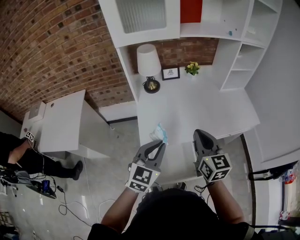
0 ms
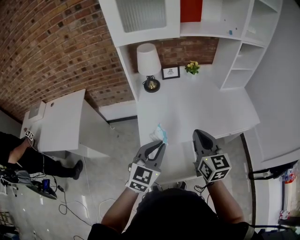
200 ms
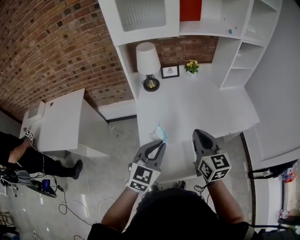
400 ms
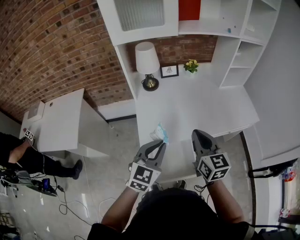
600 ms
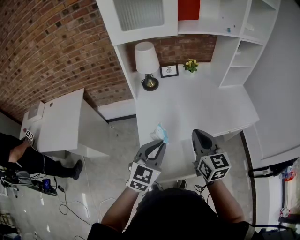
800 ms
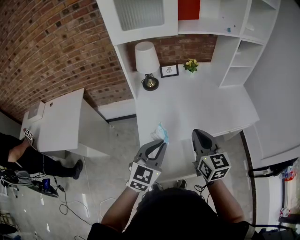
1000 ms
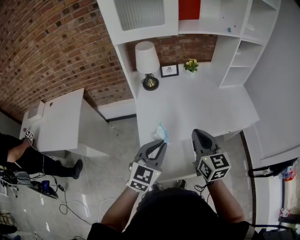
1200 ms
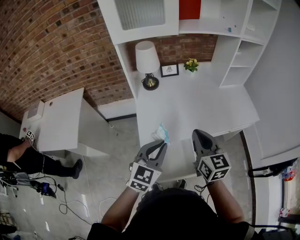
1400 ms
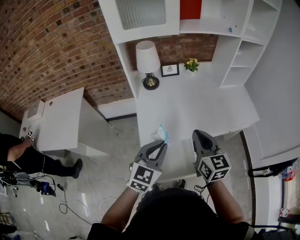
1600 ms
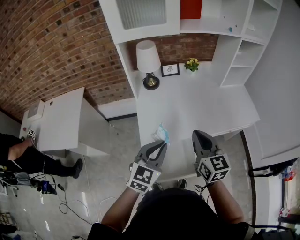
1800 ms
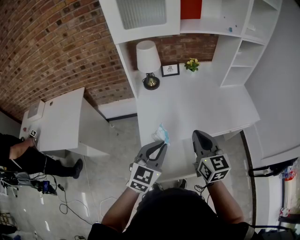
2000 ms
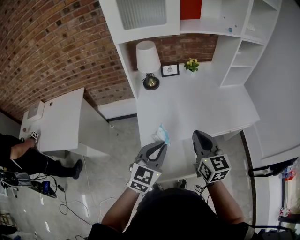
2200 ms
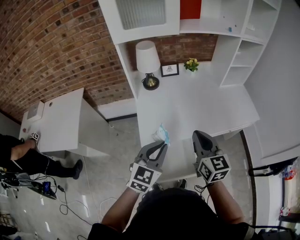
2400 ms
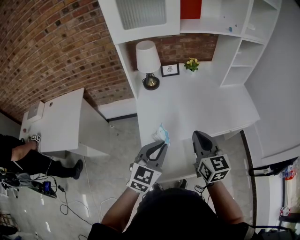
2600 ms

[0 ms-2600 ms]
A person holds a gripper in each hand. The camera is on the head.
0 ms to 1200 ms: The two grippers keep their place.
1200 ms to 2600 ms: The two grippers keep their place.

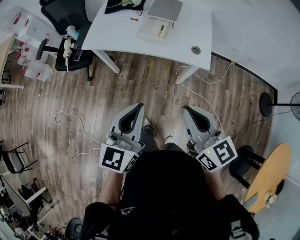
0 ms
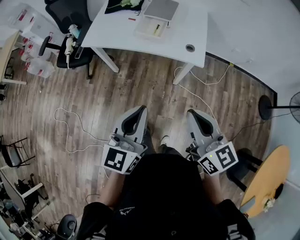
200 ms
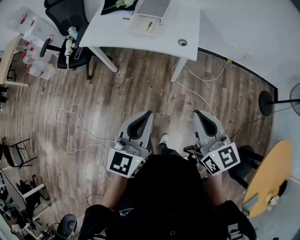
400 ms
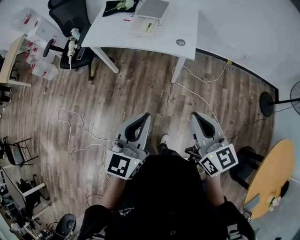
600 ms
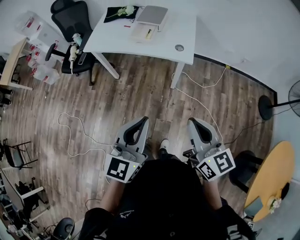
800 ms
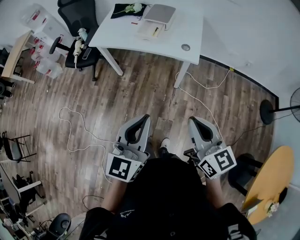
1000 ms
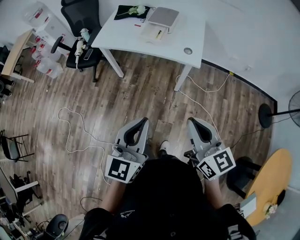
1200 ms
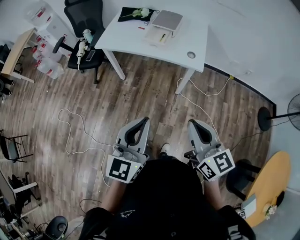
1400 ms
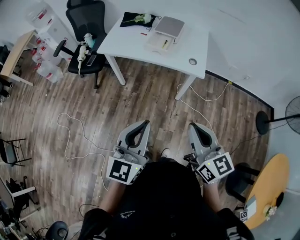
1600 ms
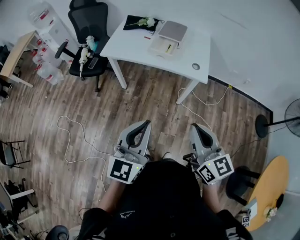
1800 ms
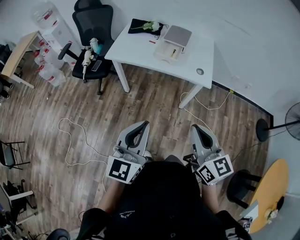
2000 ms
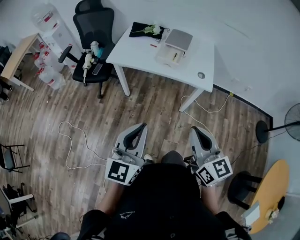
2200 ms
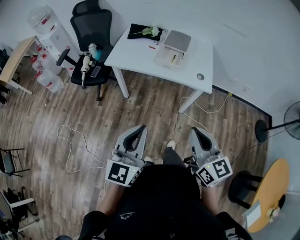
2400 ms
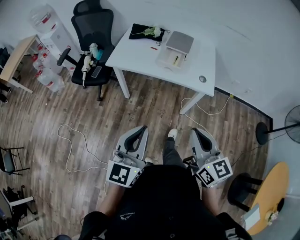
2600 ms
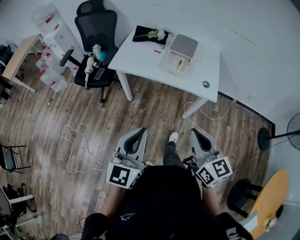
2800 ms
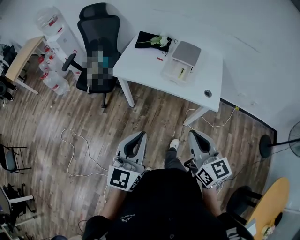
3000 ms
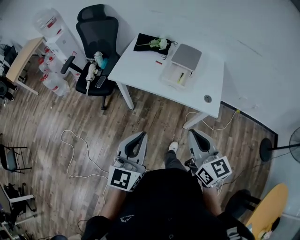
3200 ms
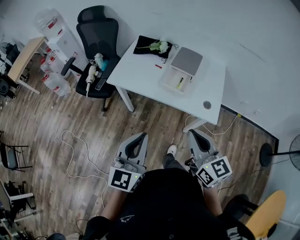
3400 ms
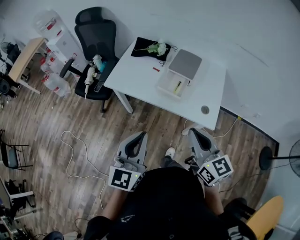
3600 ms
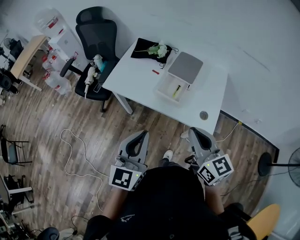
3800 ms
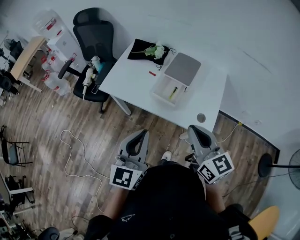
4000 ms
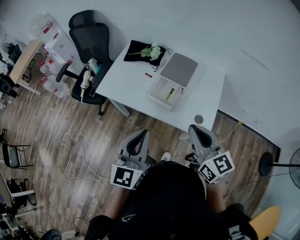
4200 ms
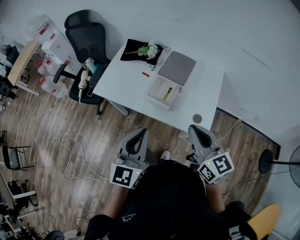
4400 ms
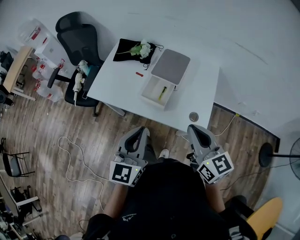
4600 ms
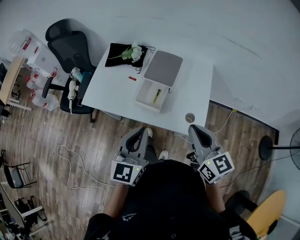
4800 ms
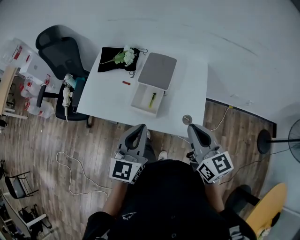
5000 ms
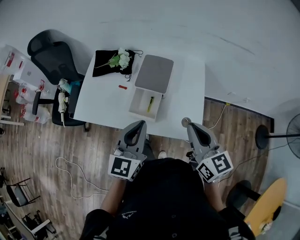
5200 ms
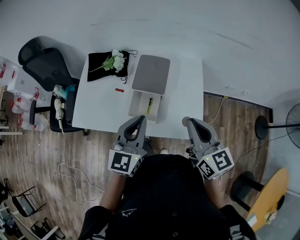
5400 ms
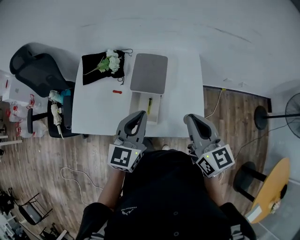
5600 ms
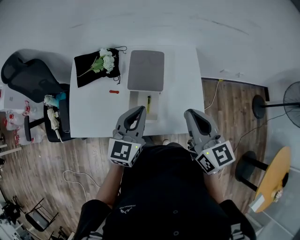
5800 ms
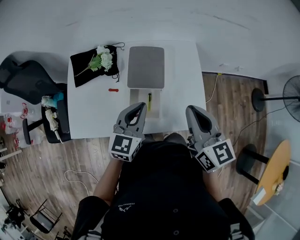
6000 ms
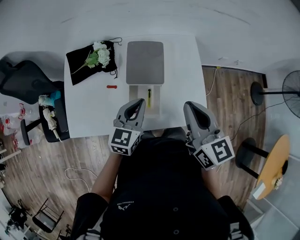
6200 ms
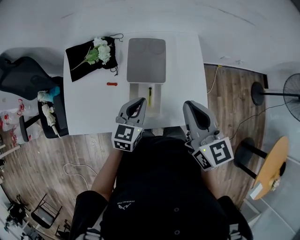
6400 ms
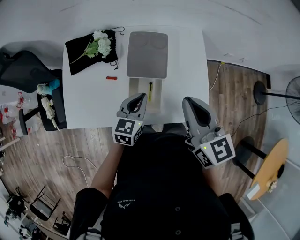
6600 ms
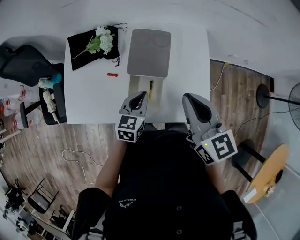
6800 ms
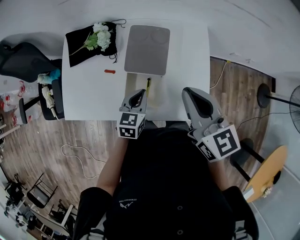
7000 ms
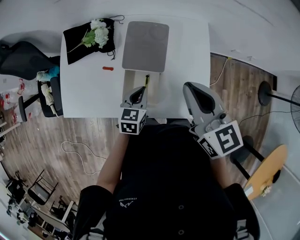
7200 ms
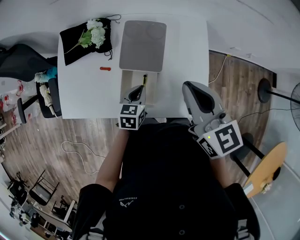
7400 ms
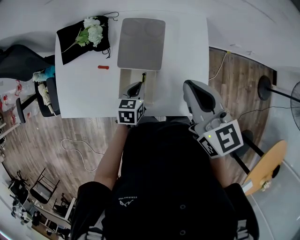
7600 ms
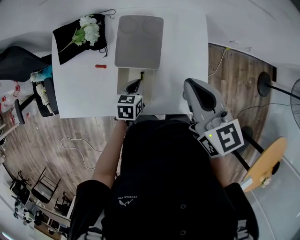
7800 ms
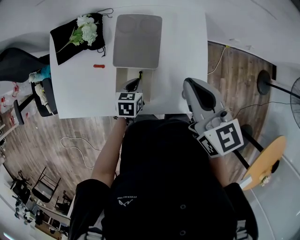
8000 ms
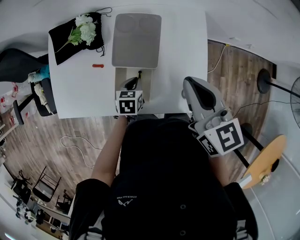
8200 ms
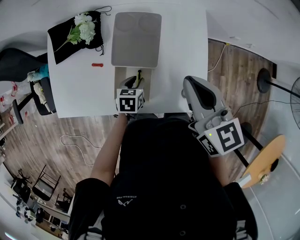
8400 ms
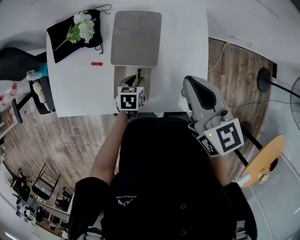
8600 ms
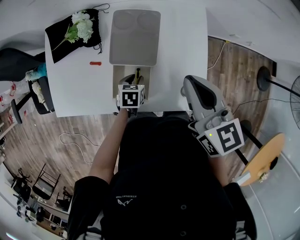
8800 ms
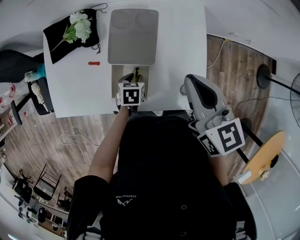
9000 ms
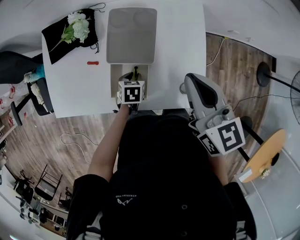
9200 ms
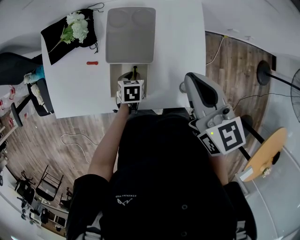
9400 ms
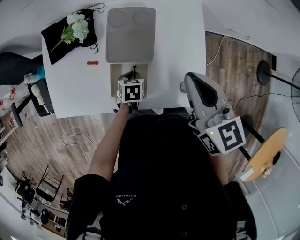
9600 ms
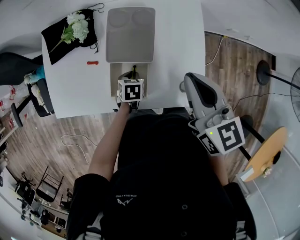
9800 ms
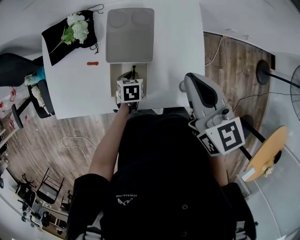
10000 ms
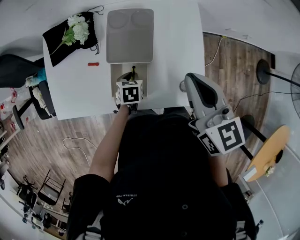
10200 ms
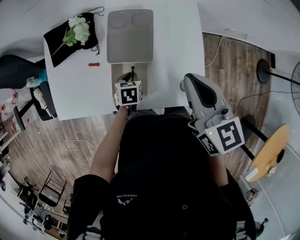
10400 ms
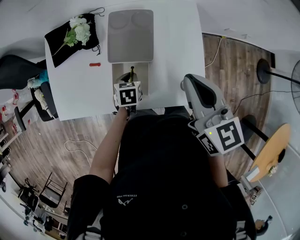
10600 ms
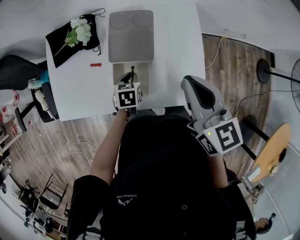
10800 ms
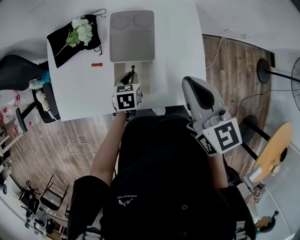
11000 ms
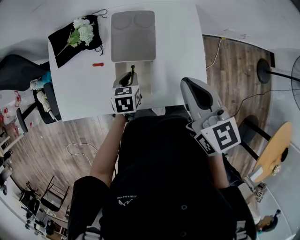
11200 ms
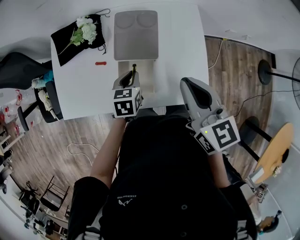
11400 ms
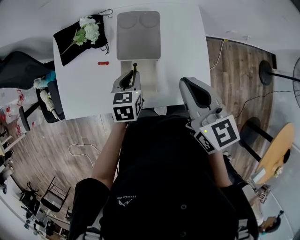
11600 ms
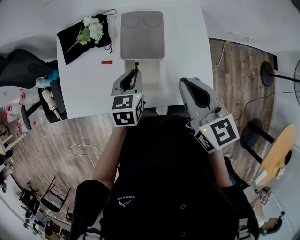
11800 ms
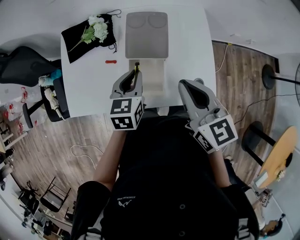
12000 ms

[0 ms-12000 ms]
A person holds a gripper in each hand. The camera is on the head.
0 ms to 1600 ms: Both grippers travel together backward, about 15 cm.
1600 ms to 3000 ms: Both grippers travel together forward and to the left, some 20 cm.
3000 ms to 4400 ms: Both grippers travel together forward and to the right, some 30 cm.
4400 ms to 6000 ms: The right gripper ends up roughly 20 cm from where it was, and turns by approximately 30 degrees; the left gripper changes place by about 30 cm, and turns by approximately 30 degrees.
6000 ms to 7600 ms: The right gripper travels forward by approximately 10 cm. Meanwhile the left gripper travels downward by roughly 20 cm, and rotates about 30 degrees.
7600 ms to 9000 ms: The left gripper is displaced downward by some 10 cm, and opens its fingers.
9000 ms to 10400 ms: The grippers make only small movements.
10400 ms to 12000 ms: The right gripper moves to the left and backward, roughly 10 cm. Meanwhile the left gripper goes about 20 cm upward, and rotates about 30 degrees.

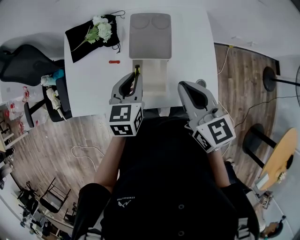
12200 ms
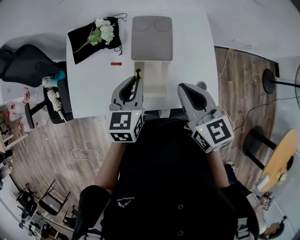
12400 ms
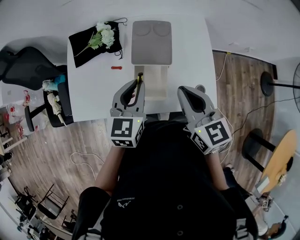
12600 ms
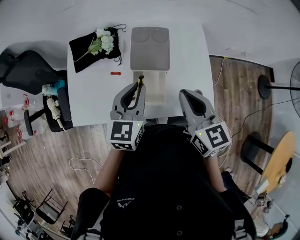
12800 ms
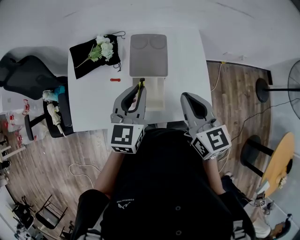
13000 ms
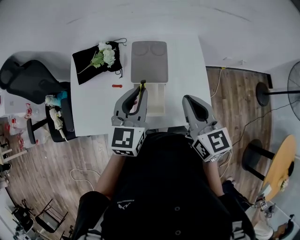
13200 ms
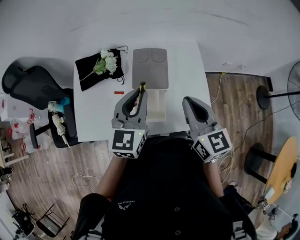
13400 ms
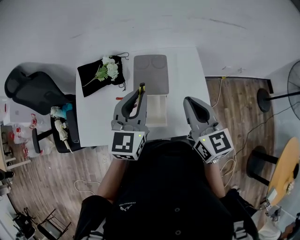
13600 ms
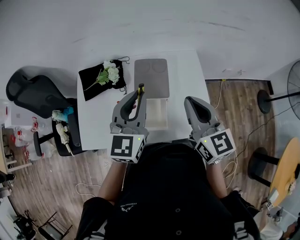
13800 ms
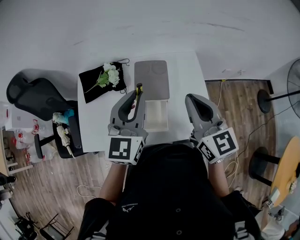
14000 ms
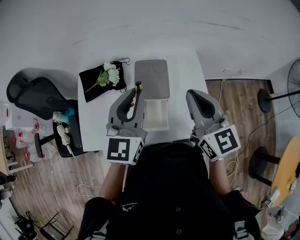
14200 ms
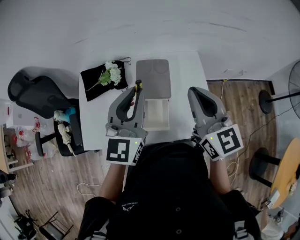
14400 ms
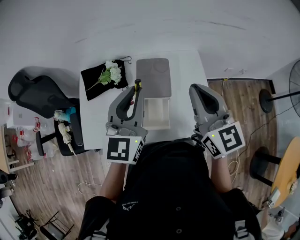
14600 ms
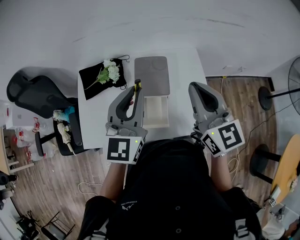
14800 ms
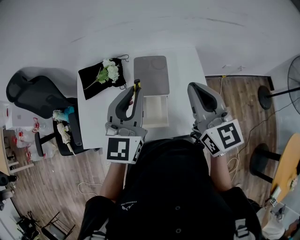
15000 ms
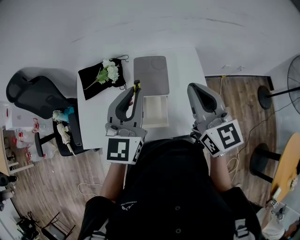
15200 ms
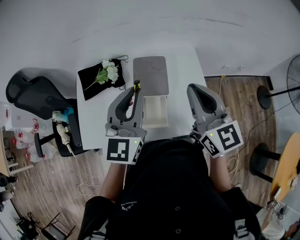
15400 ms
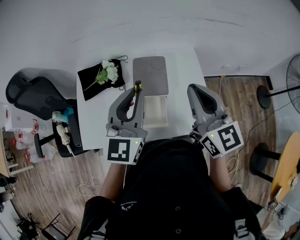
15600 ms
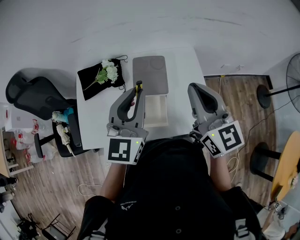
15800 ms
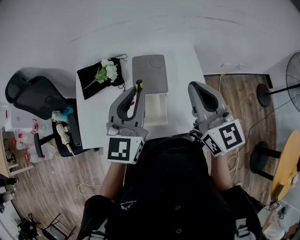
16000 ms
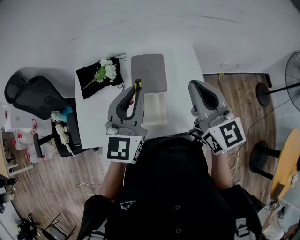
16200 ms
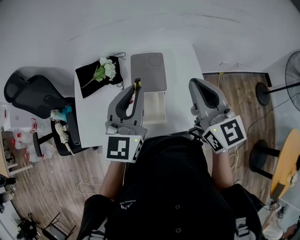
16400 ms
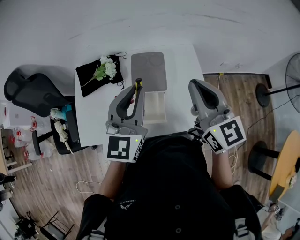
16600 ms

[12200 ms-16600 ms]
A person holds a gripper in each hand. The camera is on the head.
12200 ms to 13600 ms: The left gripper travels upward by approximately 15 cm, and changes its angle by about 30 degrees. The right gripper shifts roughly 5 cm upward.
13600 ms to 15200 ms: Both grippers travel together upward, roughly 5 cm.
15200 ms to 16600 ms: The grippers stay close to where they were, moving slightly.

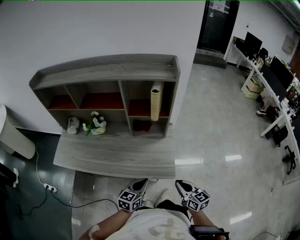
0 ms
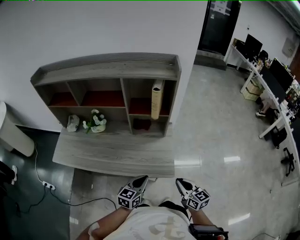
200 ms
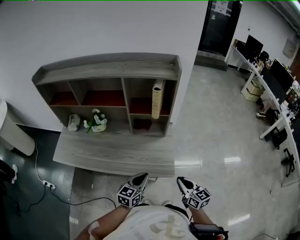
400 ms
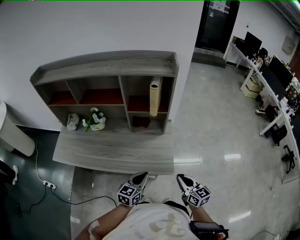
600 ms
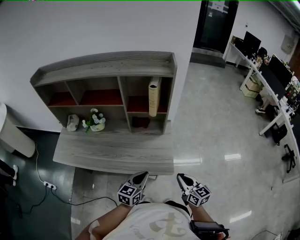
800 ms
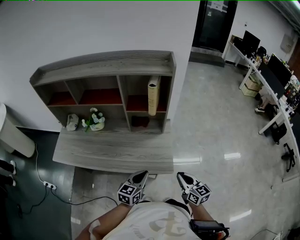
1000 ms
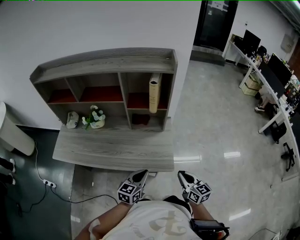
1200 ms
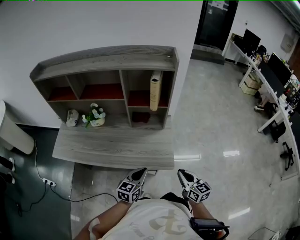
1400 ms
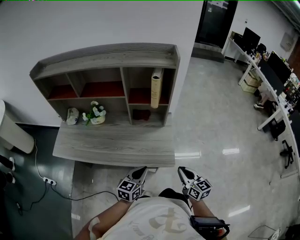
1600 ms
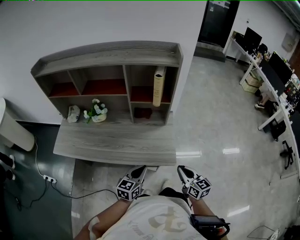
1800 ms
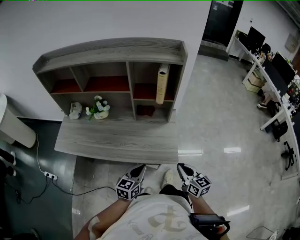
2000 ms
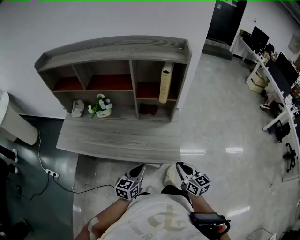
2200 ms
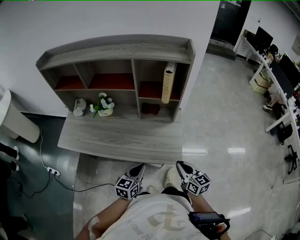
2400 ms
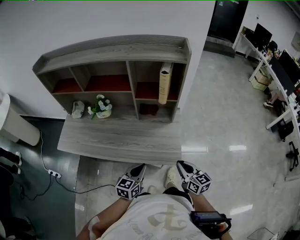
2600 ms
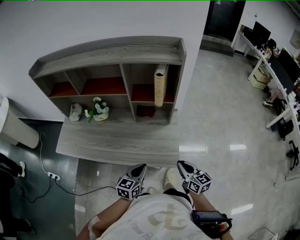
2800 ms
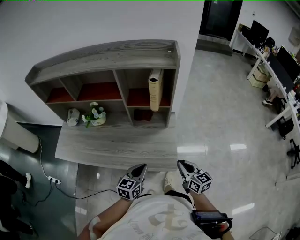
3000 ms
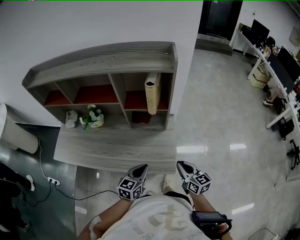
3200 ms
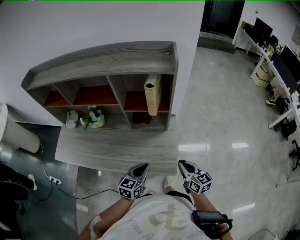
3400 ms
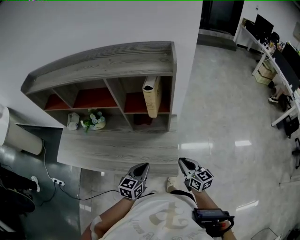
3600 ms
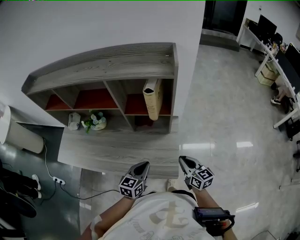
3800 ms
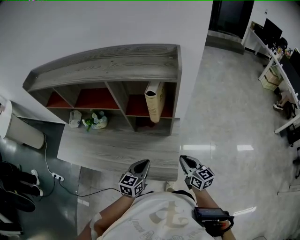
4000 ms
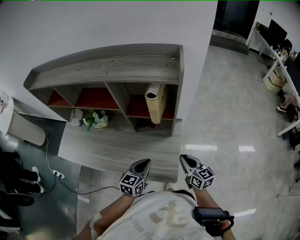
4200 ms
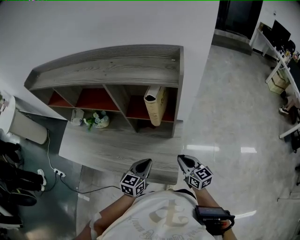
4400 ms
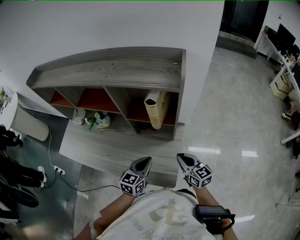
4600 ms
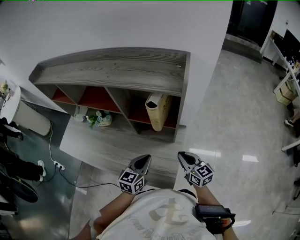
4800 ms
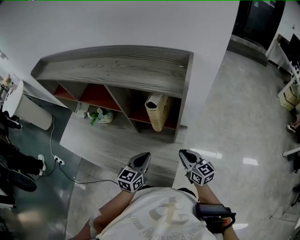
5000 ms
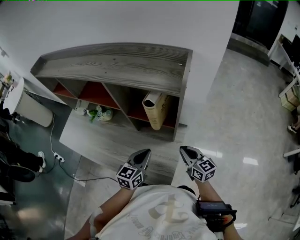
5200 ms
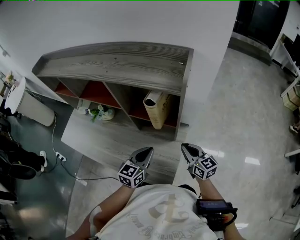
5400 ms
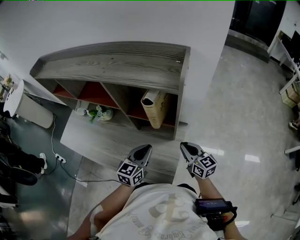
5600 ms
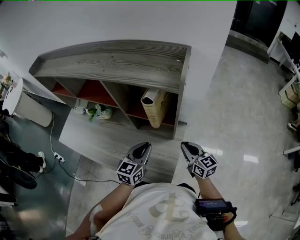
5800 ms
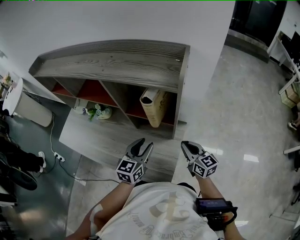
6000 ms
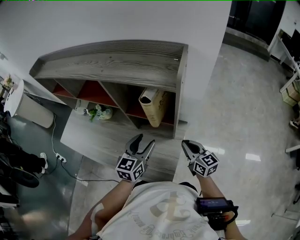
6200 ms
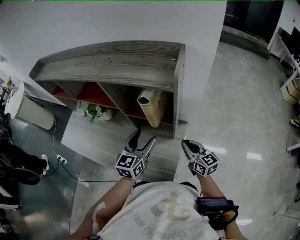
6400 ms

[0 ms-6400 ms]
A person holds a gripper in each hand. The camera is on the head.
0 ms to 1600 ms: The grippers move only a little.
1600 ms to 3200 ms: Both grippers move forward, some 10 cm.
3200 ms to 4800 ms: The grippers both shift forward by approximately 15 cm.
4800 ms to 6400 ms: The right gripper shifts by some 5 cm. The left gripper shifts about 10 cm forward and upward, and opens its fingers.
